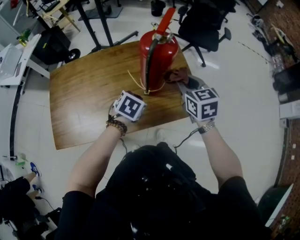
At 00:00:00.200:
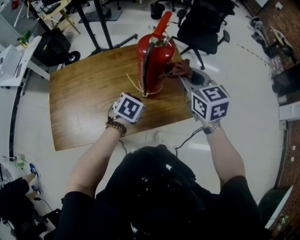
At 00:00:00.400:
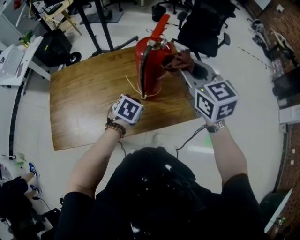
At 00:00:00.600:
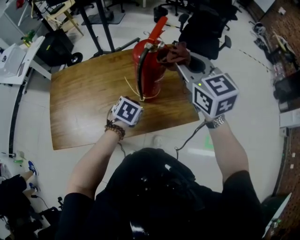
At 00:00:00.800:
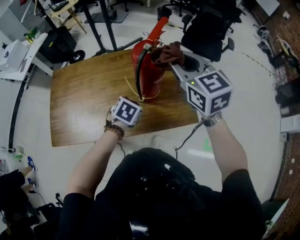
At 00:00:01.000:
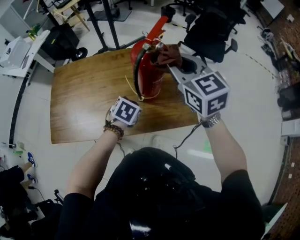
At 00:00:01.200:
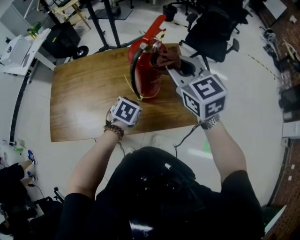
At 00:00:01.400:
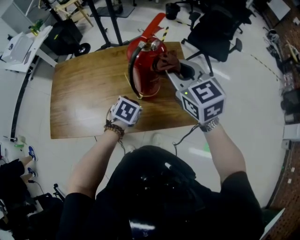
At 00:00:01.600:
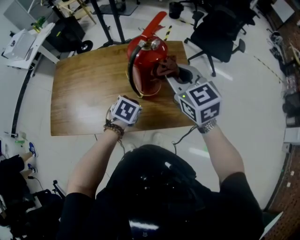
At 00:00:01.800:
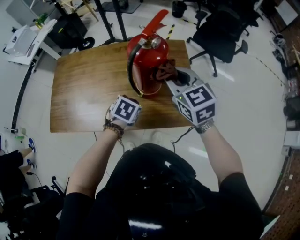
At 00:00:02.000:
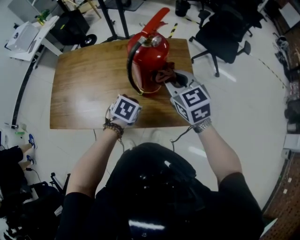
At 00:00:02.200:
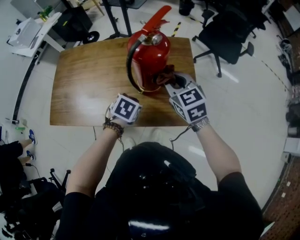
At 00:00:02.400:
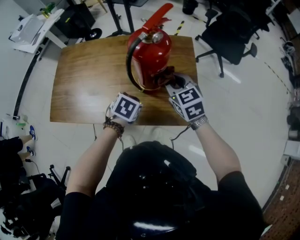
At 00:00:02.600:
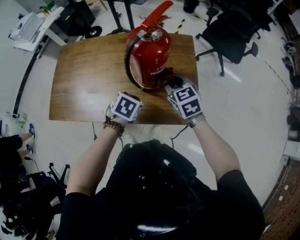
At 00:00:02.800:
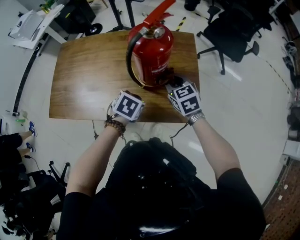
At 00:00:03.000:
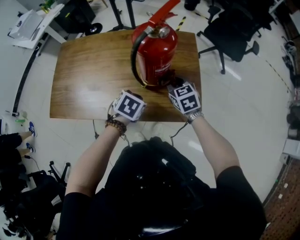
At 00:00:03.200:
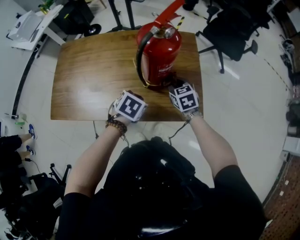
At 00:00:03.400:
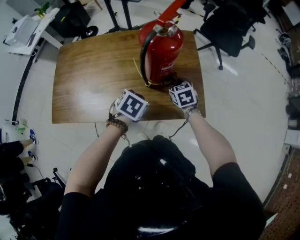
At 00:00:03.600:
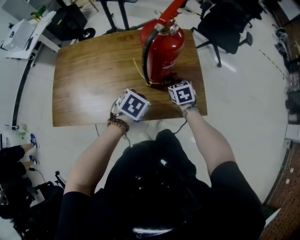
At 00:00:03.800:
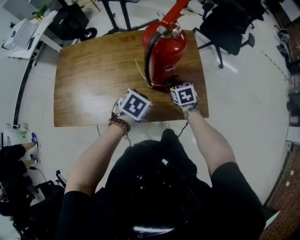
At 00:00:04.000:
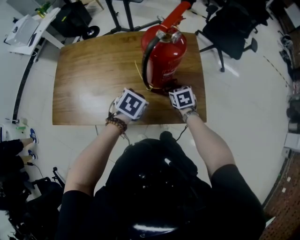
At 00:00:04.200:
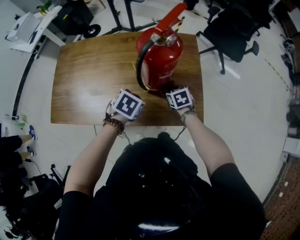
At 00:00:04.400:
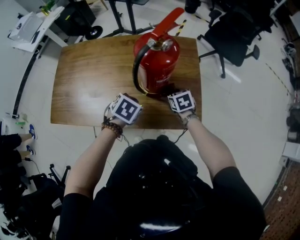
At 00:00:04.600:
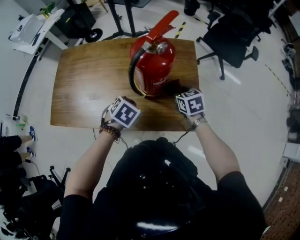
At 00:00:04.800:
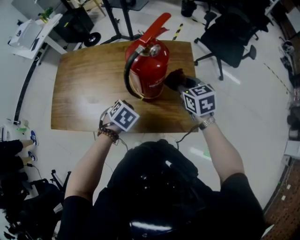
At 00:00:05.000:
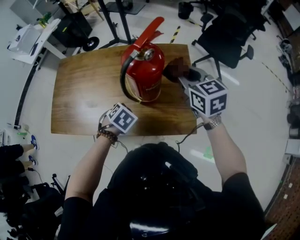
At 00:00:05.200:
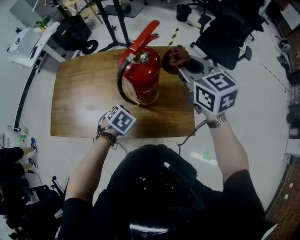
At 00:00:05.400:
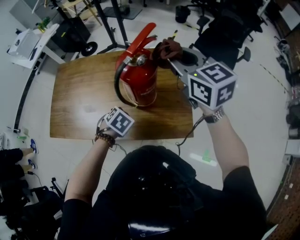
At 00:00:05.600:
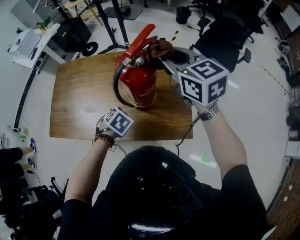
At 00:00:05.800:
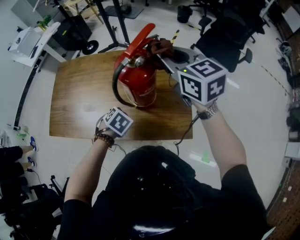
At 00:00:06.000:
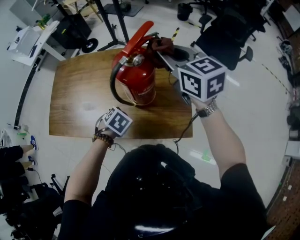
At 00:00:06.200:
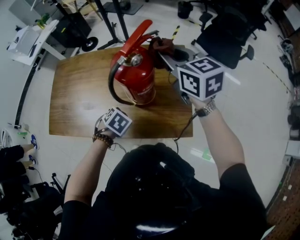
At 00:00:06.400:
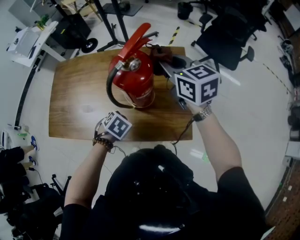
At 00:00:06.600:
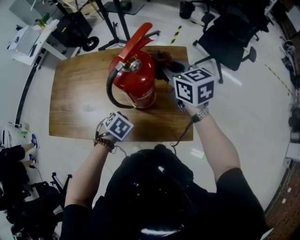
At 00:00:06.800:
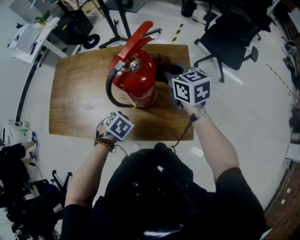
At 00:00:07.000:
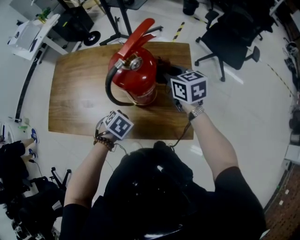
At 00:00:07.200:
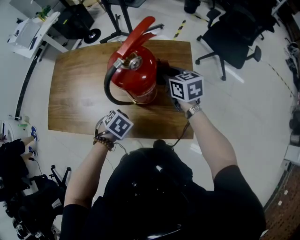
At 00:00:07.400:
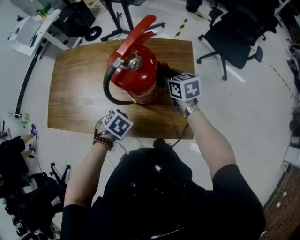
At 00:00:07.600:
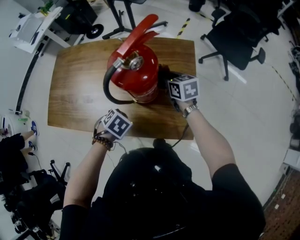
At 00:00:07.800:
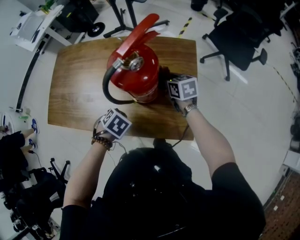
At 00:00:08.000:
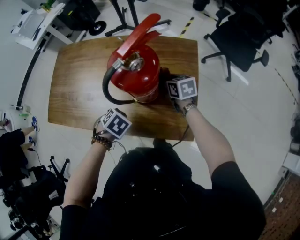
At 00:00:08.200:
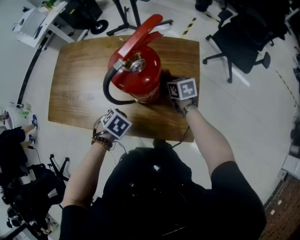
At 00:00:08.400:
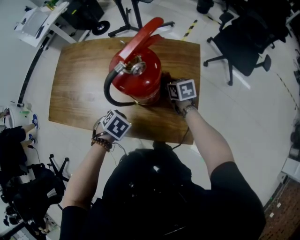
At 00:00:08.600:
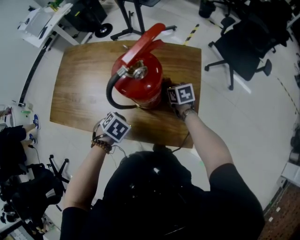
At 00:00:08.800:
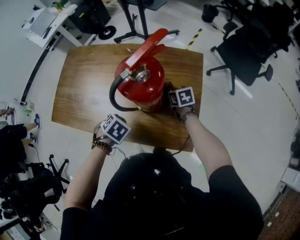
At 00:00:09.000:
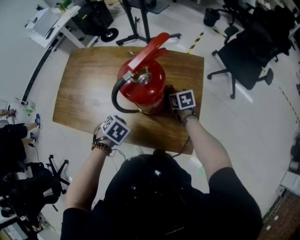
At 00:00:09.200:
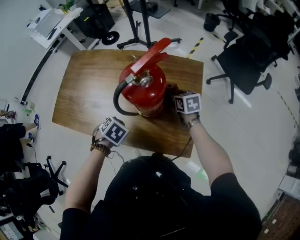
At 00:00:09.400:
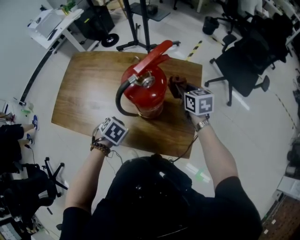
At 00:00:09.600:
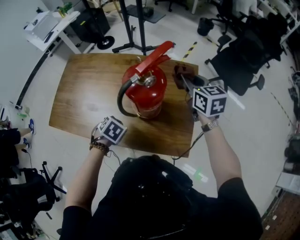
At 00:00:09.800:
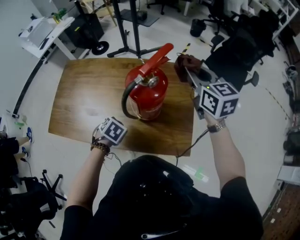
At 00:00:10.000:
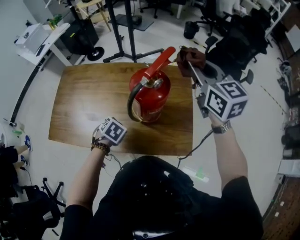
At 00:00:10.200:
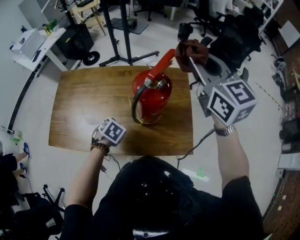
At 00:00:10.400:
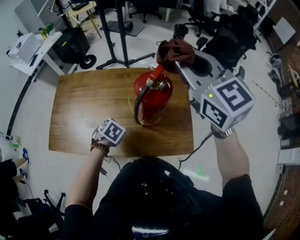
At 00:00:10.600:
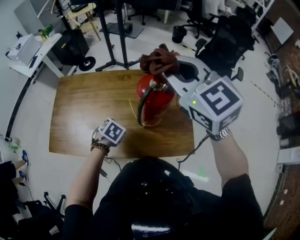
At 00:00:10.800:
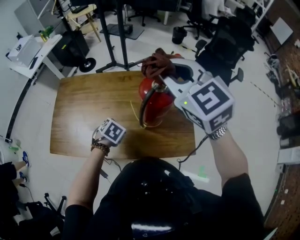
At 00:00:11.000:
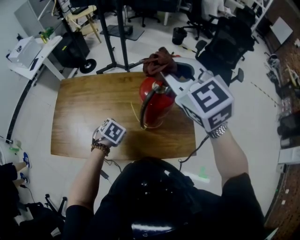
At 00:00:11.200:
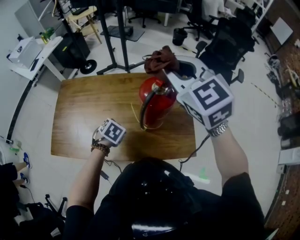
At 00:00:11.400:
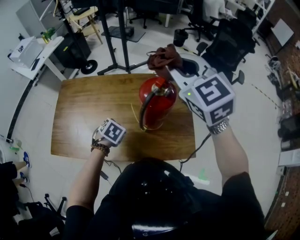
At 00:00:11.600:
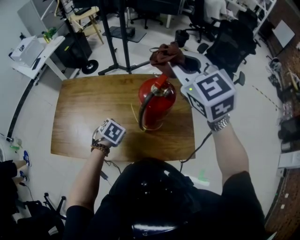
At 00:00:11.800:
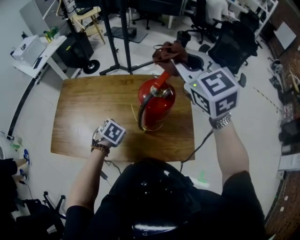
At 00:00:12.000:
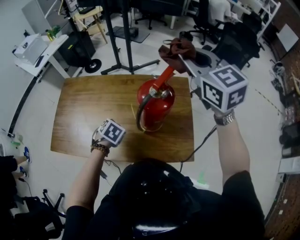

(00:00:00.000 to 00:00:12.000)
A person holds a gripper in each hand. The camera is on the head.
00:00:00.000 - 00:00:01.600: The right gripper goes roughly 10 cm upward, and rotates approximately 30 degrees.
00:00:01.600 - 00:00:03.000: The right gripper heads downward, covering about 20 cm.
00:00:03.000 - 00:00:04.400: The right gripper shifts approximately 10 cm downward.
00:00:04.400 - 00:00:06.000: The right gripper travels upward by roughly 35 cm, and points its fingers roughly 40 degrees further upward.
00:00:06.000 - 00:00:07.600: The right gripper goes approximately 25 cm downward, and changes its angle by about 20 degrees.
00:00:07.600 - 00:00:09.000: The right gripper heads downward, covering roughly 10 cm.
00:00:09.000 - 00:00:10.400: The left gripper changes place by some 5 cm; the right gripper heads upward, covering roughly 50 cm, and tilts its fingers approximately 40 degrees upward.
00:00:10.400 - 00:00:12.000: The right gripper goes some 5 cm forward, and moves approximately 5 cm to the left and comes back.

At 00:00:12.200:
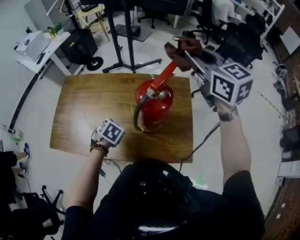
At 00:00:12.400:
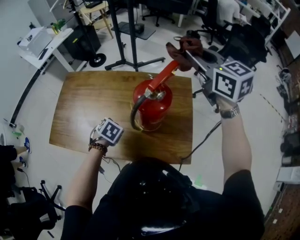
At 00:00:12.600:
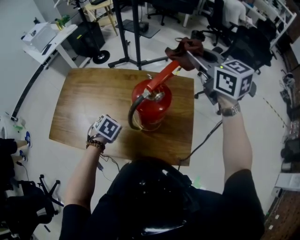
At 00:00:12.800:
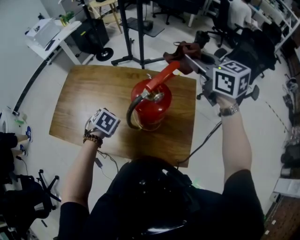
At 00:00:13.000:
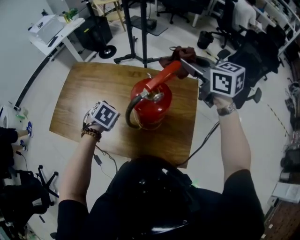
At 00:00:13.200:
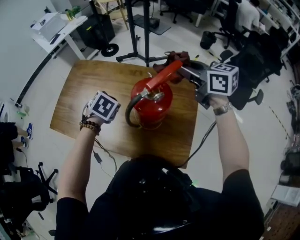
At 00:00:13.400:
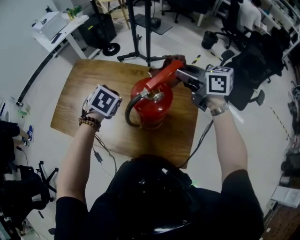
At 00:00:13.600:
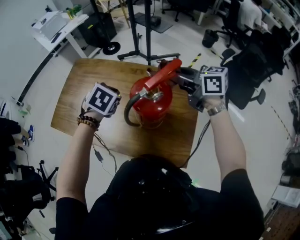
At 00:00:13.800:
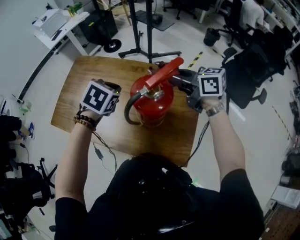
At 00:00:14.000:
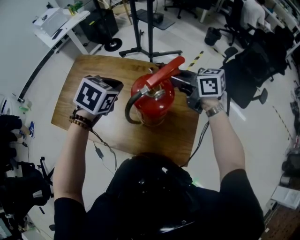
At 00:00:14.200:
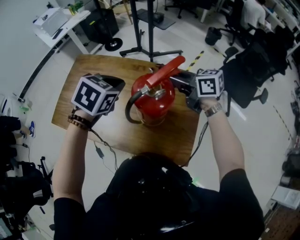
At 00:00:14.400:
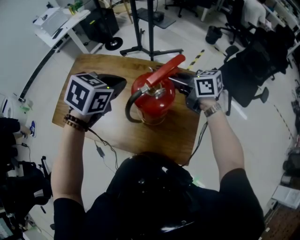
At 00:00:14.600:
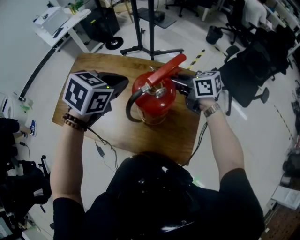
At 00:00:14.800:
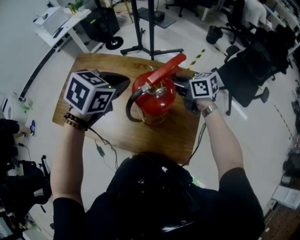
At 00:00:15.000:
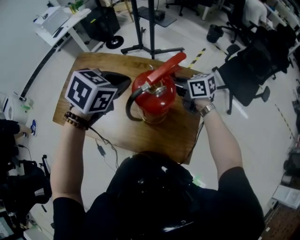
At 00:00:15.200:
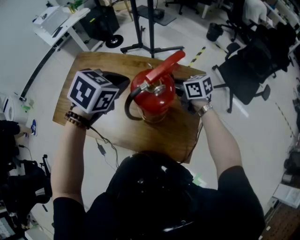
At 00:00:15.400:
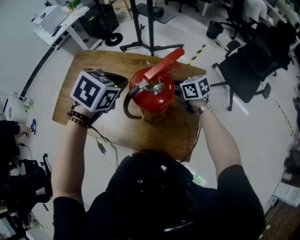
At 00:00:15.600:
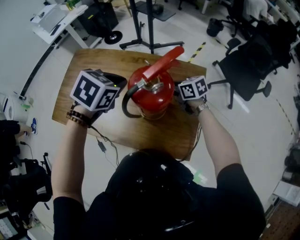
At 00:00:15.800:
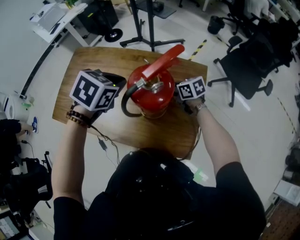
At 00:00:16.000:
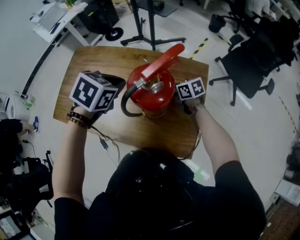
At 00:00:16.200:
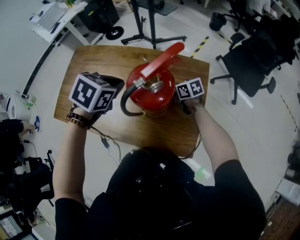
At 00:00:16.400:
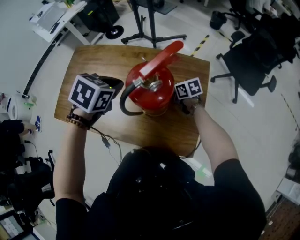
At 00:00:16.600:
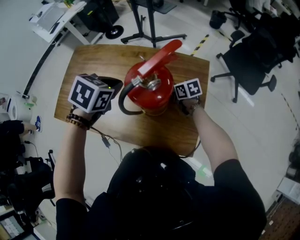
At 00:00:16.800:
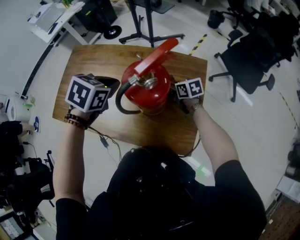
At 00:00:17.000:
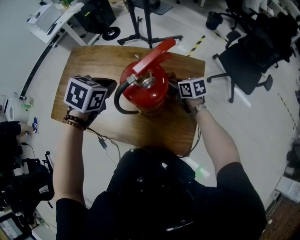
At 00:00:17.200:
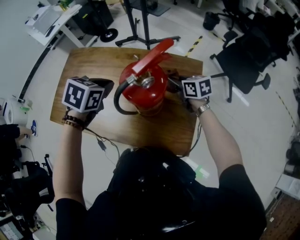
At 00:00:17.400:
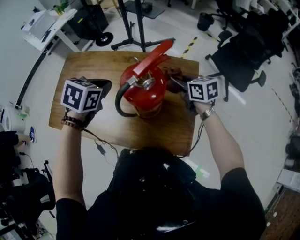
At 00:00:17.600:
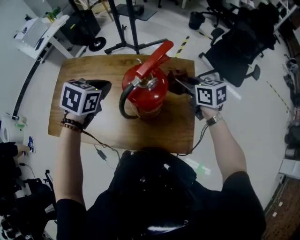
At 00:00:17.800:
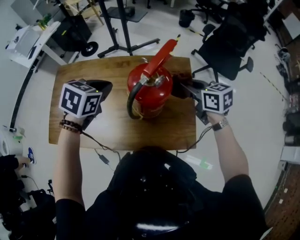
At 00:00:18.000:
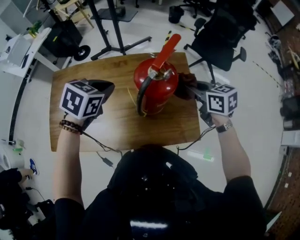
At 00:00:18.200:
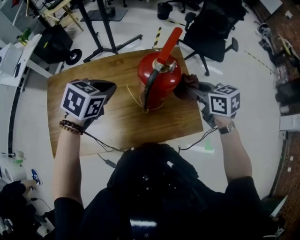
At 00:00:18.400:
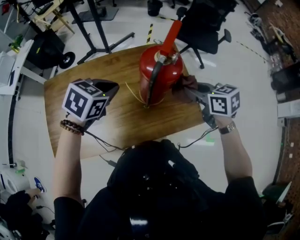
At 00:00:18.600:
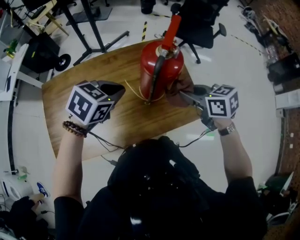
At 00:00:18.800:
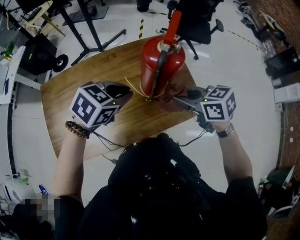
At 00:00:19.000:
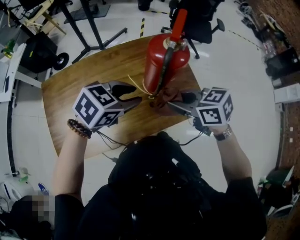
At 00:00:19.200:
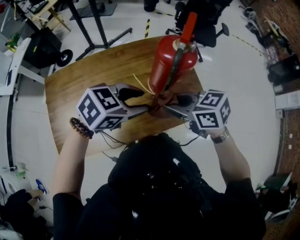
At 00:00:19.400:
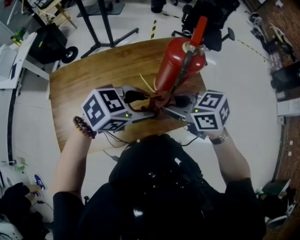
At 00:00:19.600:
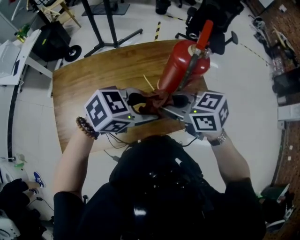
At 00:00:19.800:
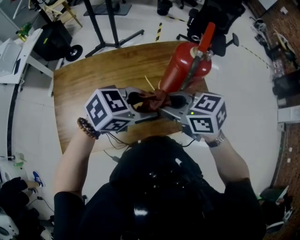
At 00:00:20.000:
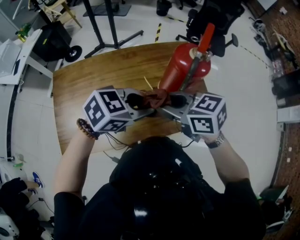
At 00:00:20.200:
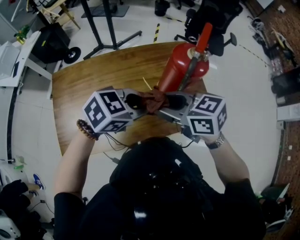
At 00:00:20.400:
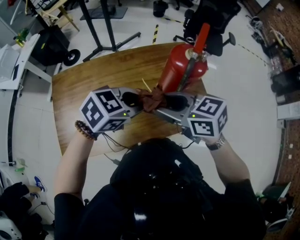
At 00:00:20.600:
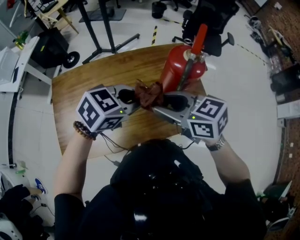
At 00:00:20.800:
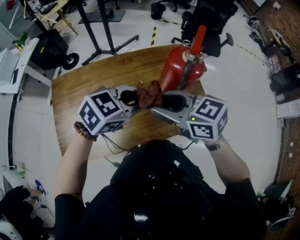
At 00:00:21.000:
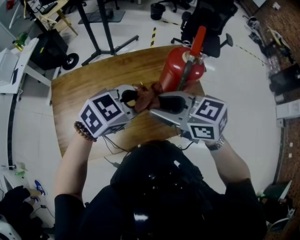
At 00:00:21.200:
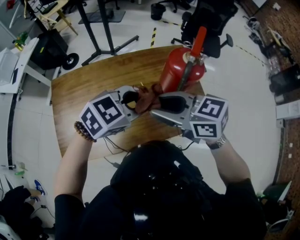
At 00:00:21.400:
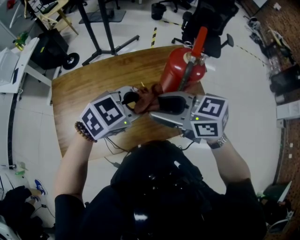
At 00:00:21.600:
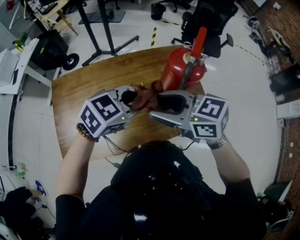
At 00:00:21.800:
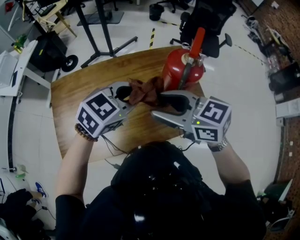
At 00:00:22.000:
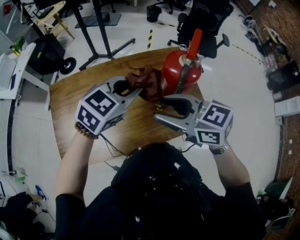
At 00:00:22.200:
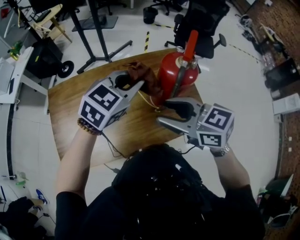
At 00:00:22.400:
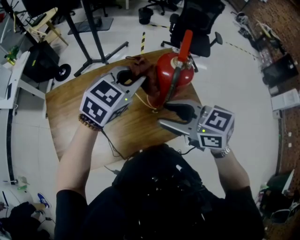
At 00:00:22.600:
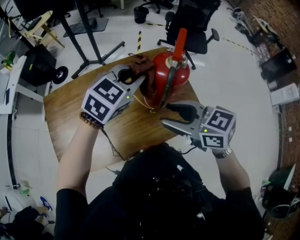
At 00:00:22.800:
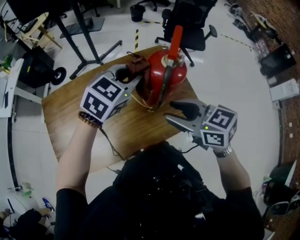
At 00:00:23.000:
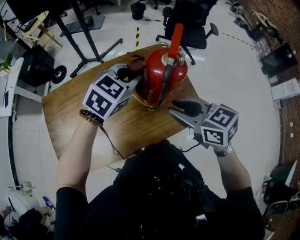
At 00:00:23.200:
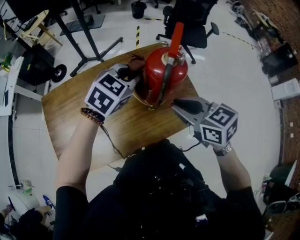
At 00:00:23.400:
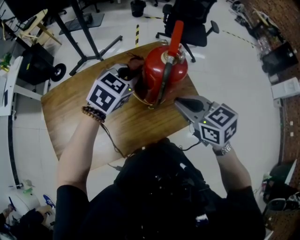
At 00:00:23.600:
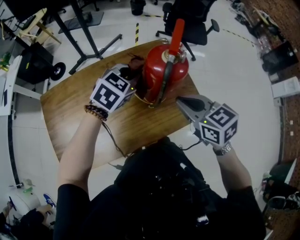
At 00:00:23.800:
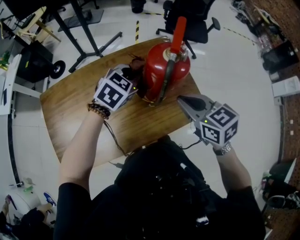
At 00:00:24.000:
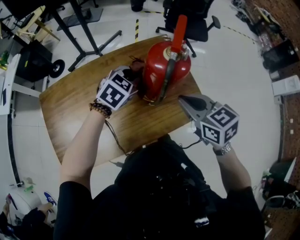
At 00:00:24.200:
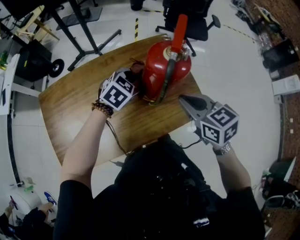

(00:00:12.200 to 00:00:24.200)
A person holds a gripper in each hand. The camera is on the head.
00:00:12.200 - 00:00:13.800: The right gripper goes approximately 15 cm downward, and rotates some 50 degrees. The left gripper is displaced upward by approximately 15 cm.
00:00:13.800 - 00:00:15.200: The left gripper goes roughly 5 cm upward; the right gripper goes some 15 cm downward.
00:00:15.200 - 00:00:16.600: The right gripper travels downward by roughly 15 cm, while the left gripper moves downward, roughly 5 cm.
00:00:16.600 - 00:00:18.200: The right gripper is displaced upward by about 20 cm, and turns by roughly 30 degrees. The left gripper changes its angle by some 30 degrees.
00:00:18.200 - 00:00:19.800: The left gripper changes place by some 15 cm, swivels roughly 40 degrees, and opens its fingers. The right gripper shifts by some 25 cm.
00:00:19.800 - 00:00:21.200: The left gripper closes its fingers.
00:00:21.200 - 00:00:22.600: The left gripper changes place by about 10 cm; the right gripper moves some 5 cm.
00:00:22.600 - 00:00:24.200: The left gripper goes some 15 cm downward. The right gripper travels to the right and downward by some 10 cm, rotates roughly 20 degrees, and closes.
